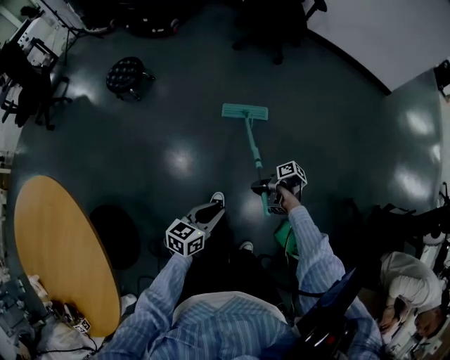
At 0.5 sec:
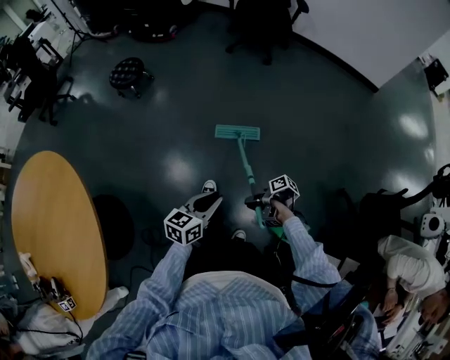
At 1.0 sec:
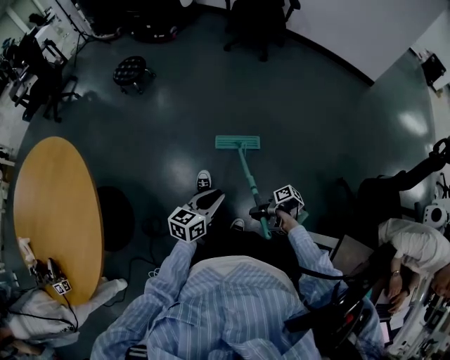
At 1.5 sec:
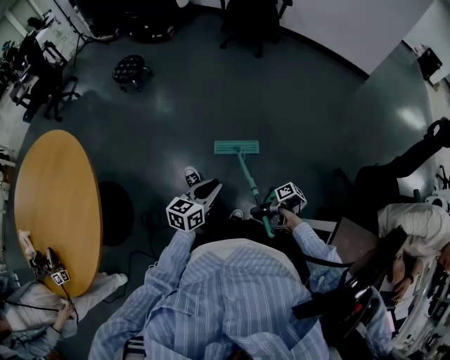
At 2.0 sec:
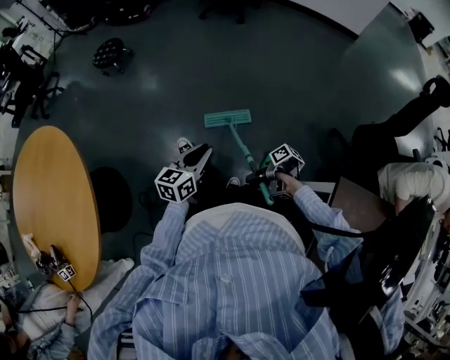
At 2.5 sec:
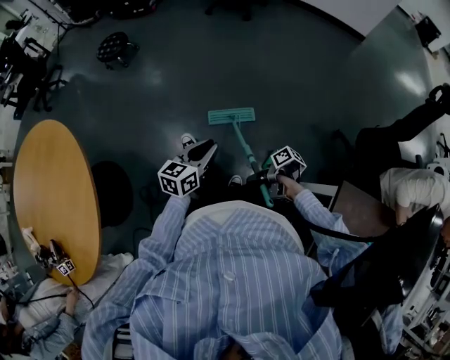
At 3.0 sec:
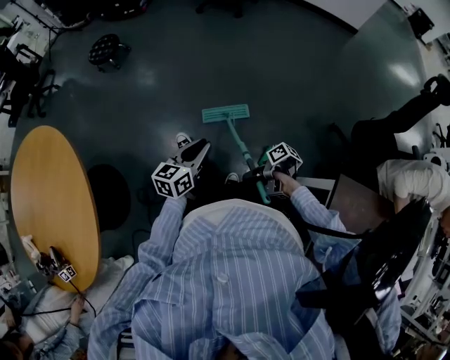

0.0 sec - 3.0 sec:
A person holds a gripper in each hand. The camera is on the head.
0.0 sec - 1.5 sec: The left gripper changes place by roughly 25 cm.

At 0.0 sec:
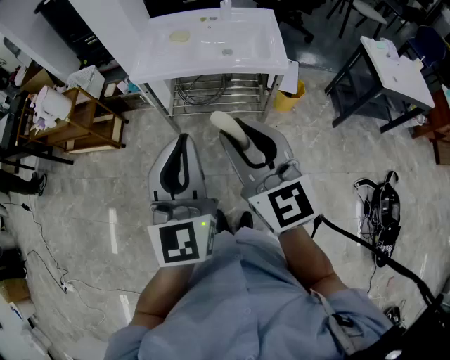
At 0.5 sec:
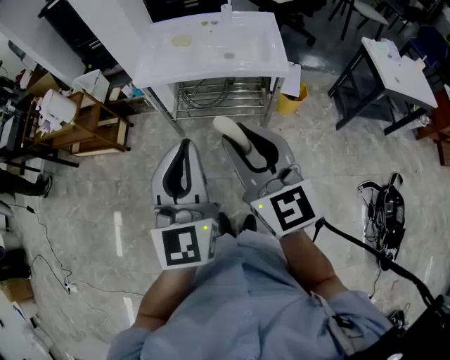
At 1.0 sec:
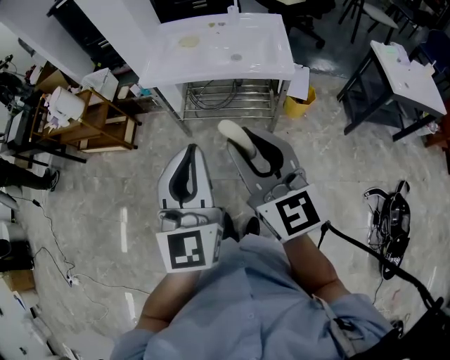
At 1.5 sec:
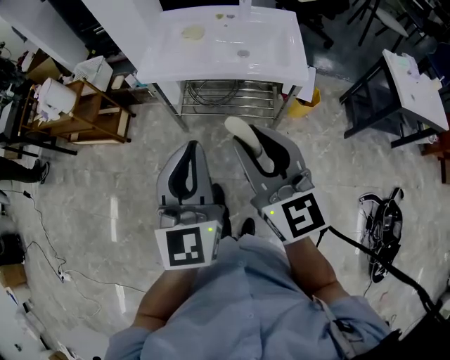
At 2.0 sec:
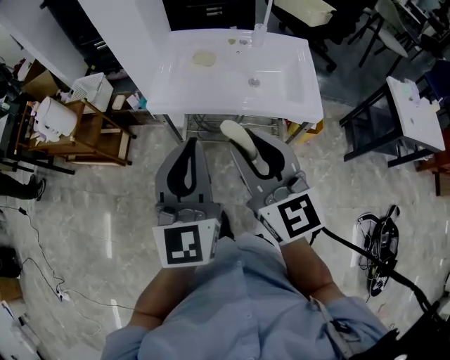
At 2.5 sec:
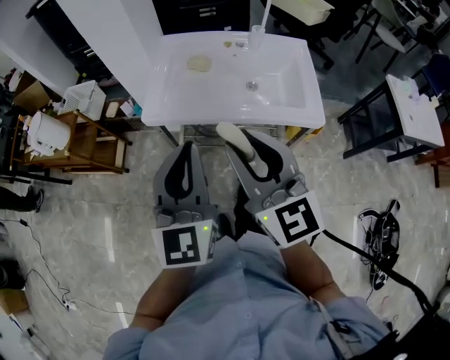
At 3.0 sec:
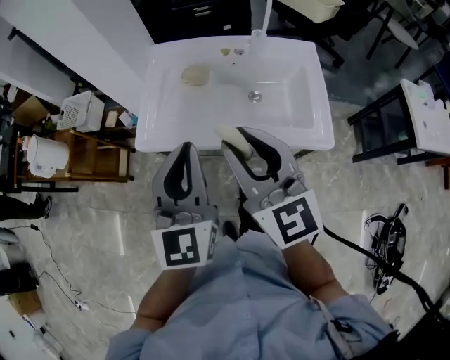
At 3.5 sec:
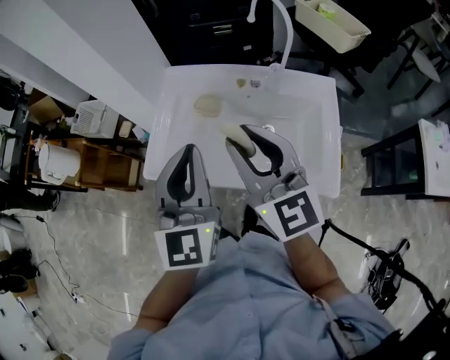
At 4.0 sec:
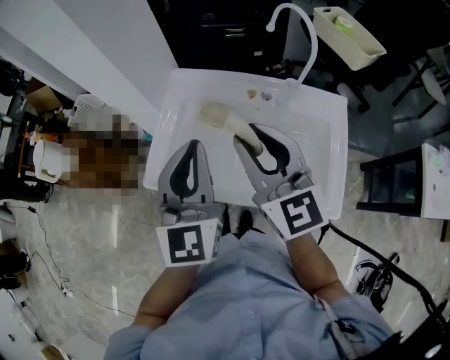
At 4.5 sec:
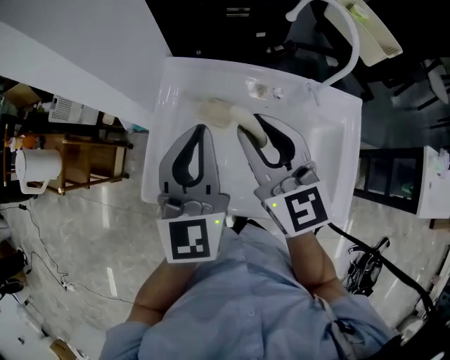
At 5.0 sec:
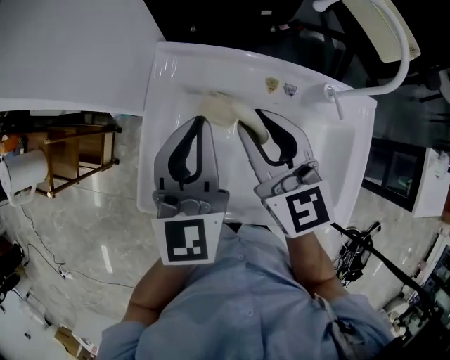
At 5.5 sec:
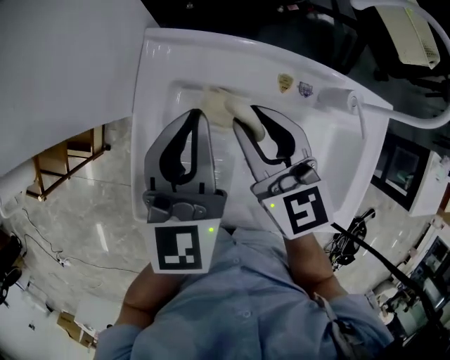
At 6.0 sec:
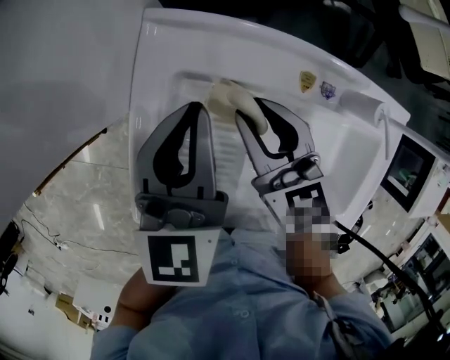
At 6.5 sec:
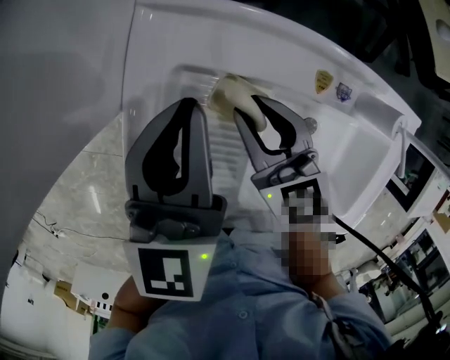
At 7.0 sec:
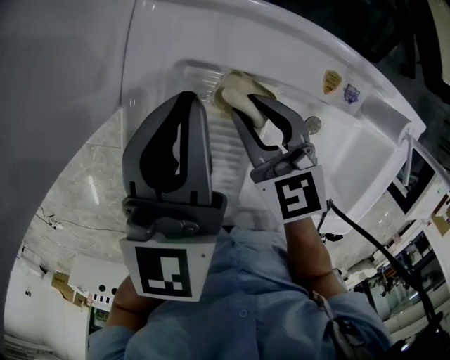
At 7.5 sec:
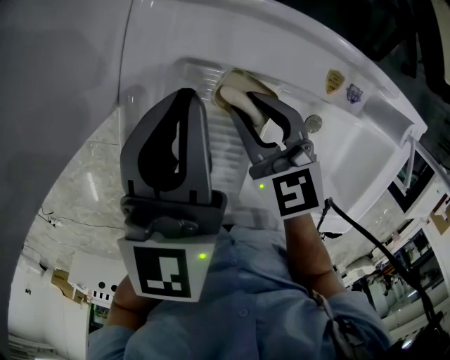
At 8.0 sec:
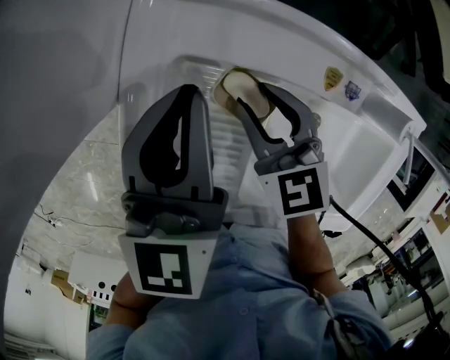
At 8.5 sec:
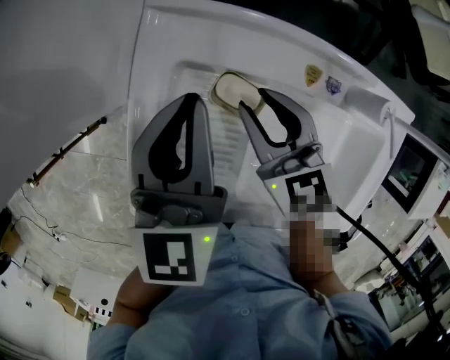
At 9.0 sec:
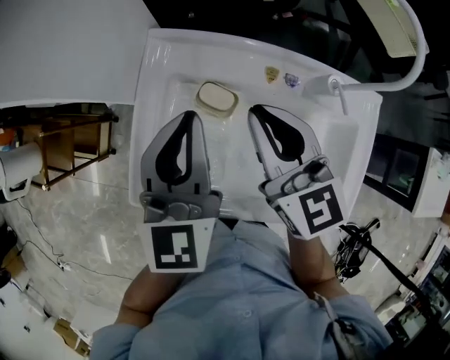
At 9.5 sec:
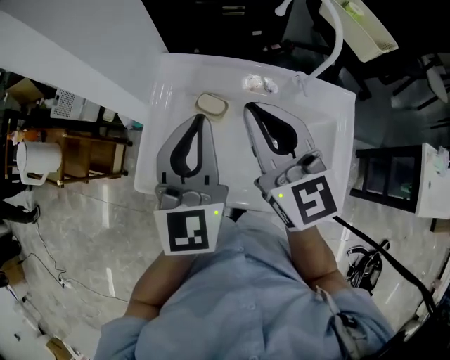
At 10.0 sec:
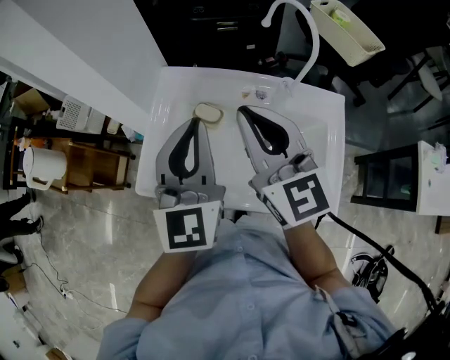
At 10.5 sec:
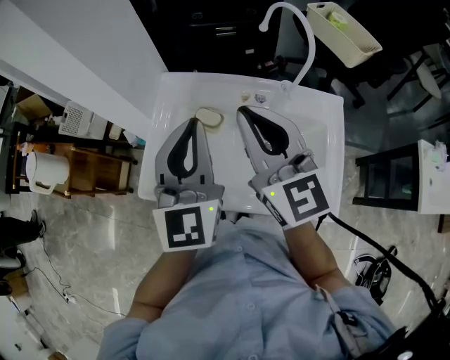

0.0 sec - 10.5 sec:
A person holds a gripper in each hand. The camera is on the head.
0.0 sec - 2.0 sec: Both grippers travel together forward, some 20 cm.
2.0 sec - 4.0 sec: The grippers both shift forward by approximately 35 cm.
4.0 sec - 6.5 sec: The left gripper goes roughly 30 cm forward and downward, and turns by approximately 30 degrees, while the right gripper is displaced downward and forward by some 35 cm, and swivels roughly 30 degrees.
6.5 sec - 8.5 sec: The grippers stay close to where they were, moving slightly.
8.5 sec - 10.5 sec: The left gripper shifts roughly 25 cm backward and upward, and swivels about 30 degrees. Meanwhile the right gripper is displaced upward and backward by roughly 30 cm, tips its fingers upward by some 30 degrees, and closes its fingers.

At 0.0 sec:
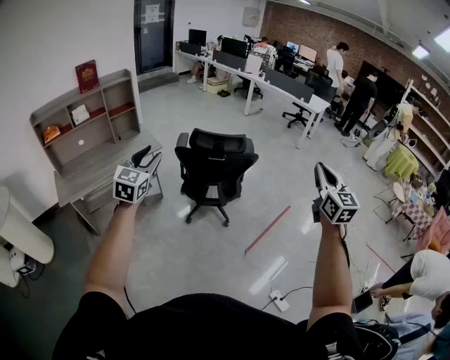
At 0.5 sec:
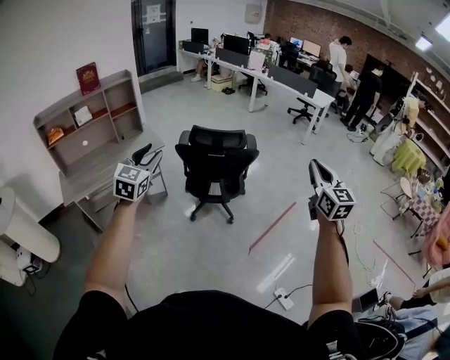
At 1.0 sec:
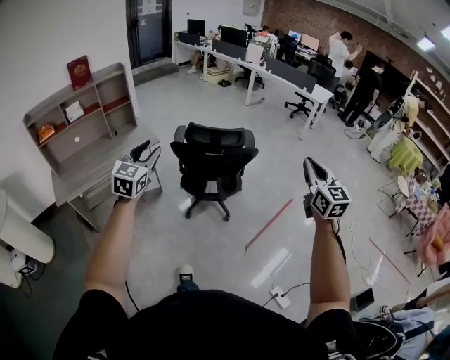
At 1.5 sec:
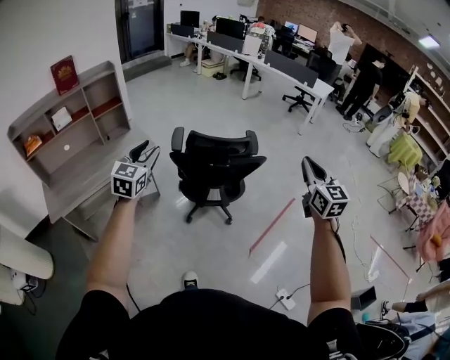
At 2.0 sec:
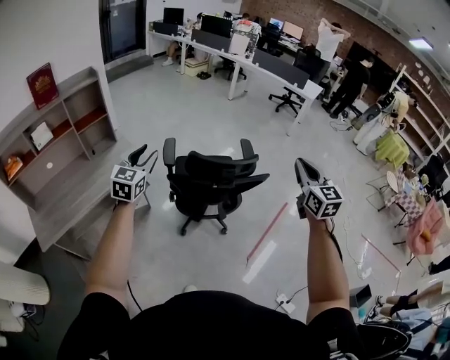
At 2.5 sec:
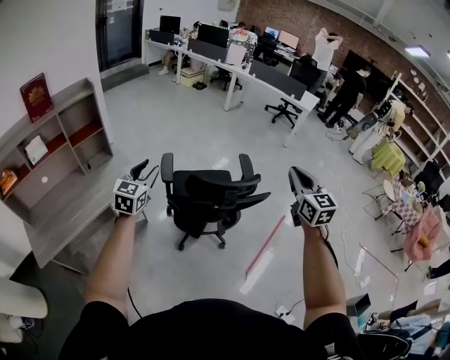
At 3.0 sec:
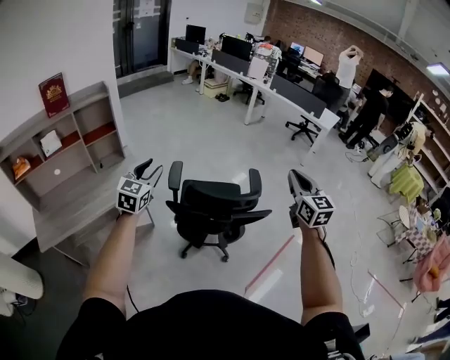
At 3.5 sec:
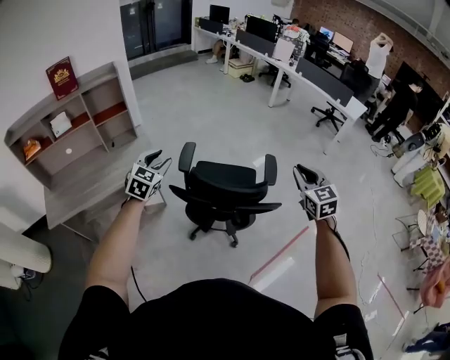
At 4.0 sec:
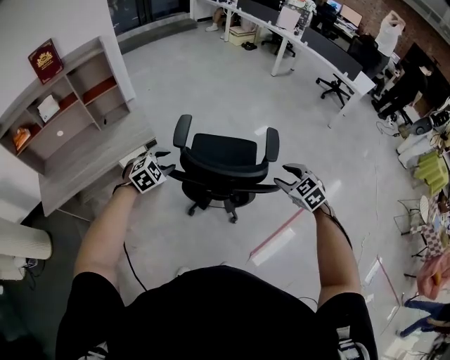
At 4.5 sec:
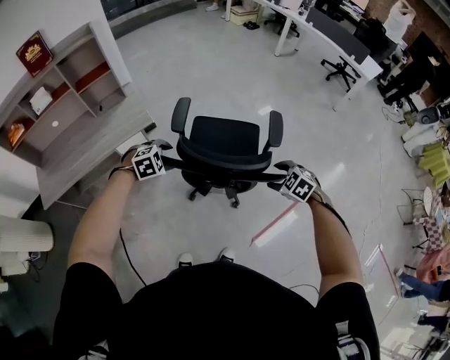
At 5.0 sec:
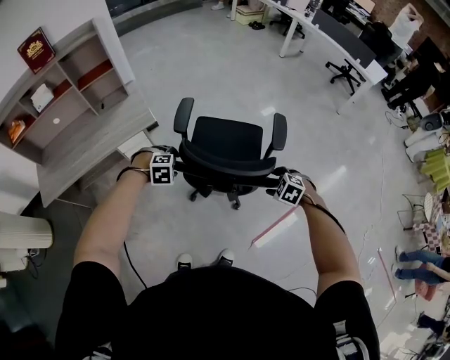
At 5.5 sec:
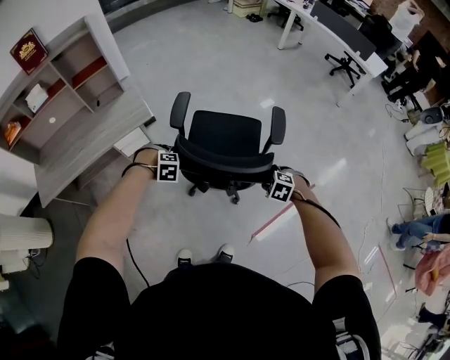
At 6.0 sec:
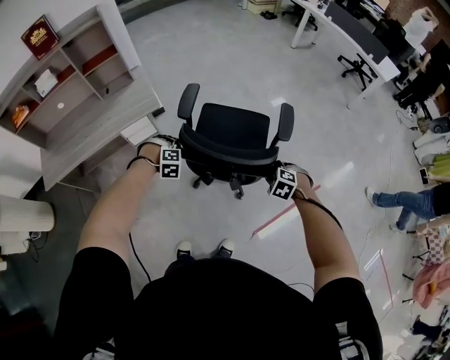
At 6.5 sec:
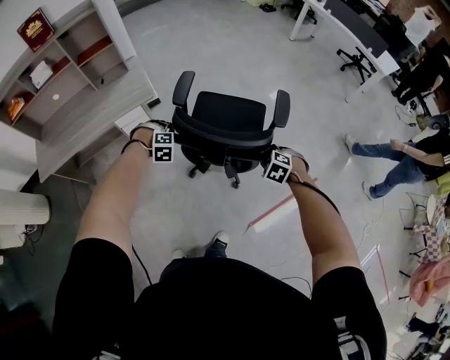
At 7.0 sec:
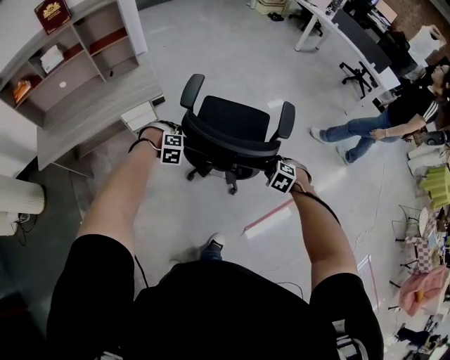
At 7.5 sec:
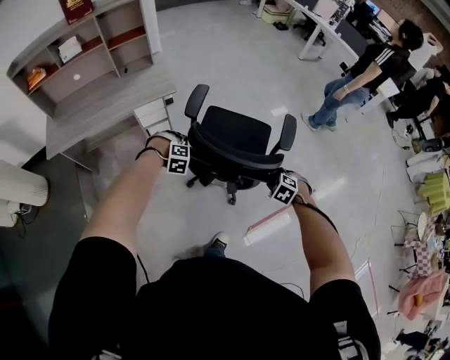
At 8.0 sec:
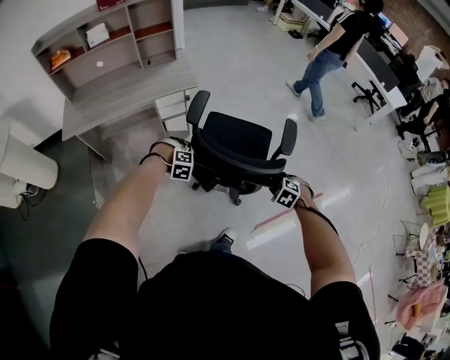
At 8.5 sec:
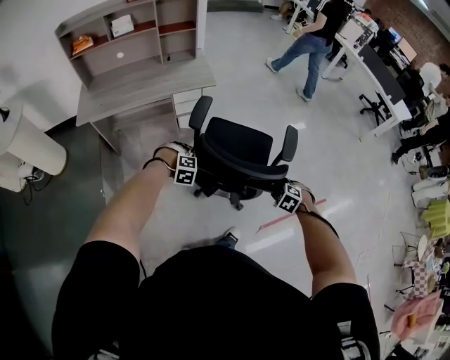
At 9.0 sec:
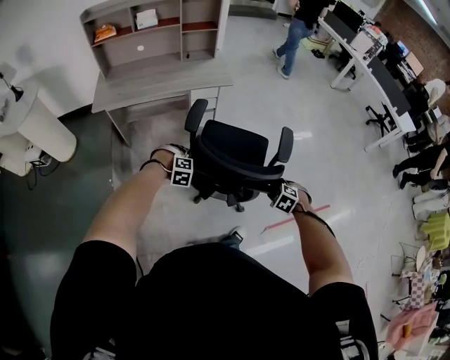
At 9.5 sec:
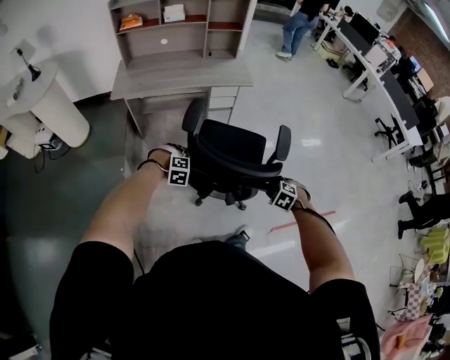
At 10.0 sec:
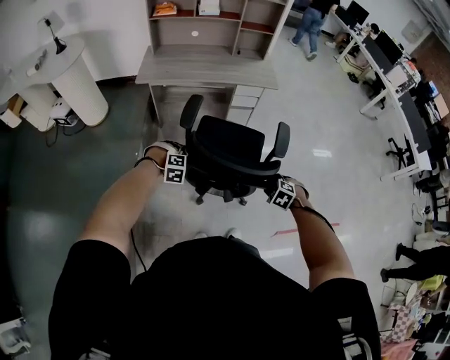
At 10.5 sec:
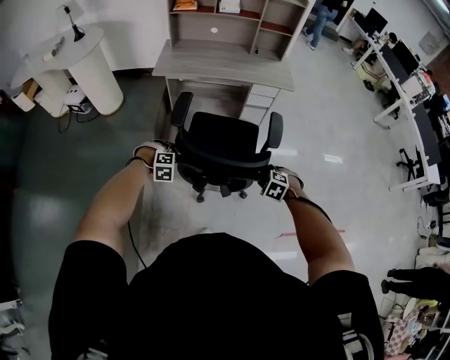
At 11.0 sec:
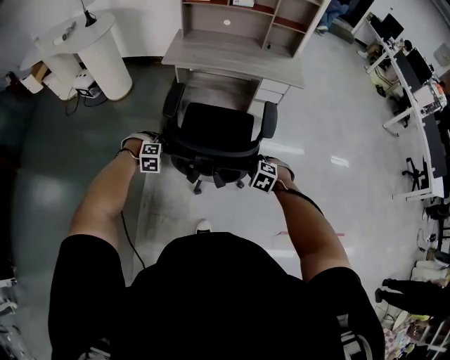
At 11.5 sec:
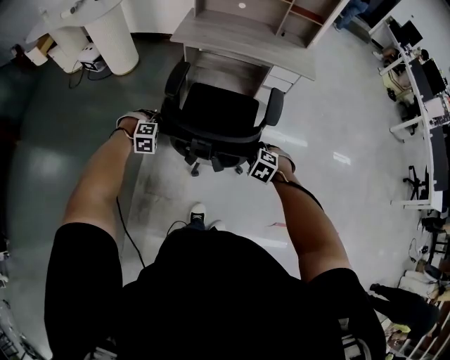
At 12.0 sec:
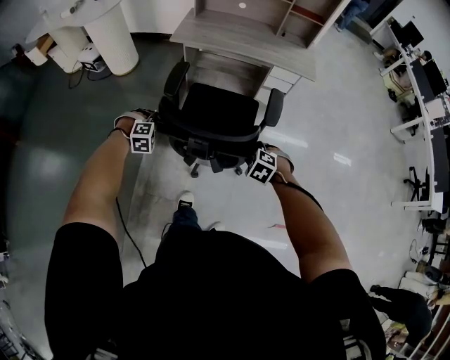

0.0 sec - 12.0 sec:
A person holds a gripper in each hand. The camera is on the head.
0.0 sec - 2.0 sec: The left gripper moves forward, approximately 35 cm; the right gripper moves forward and to the left, approximately 35 cm.
2.0 sec - 4.0 sec: The left gripper is displaced downward, to the right and forward by approximately 25 cm, and points its fingers roughly 40 degrees further downward. Meanwhile the right gripper heads downward and forward, covering approximately 30 cm, tips its fingers downward by some 40 degrees, and opens up.
4.0 sec - 6.0 sec: The two grippers go about 20 cm downward. The right gripper turns by some 40 degrees; the left gripper changes its angle by about 40 degrees, and closes.
6.0 sec - 8.0 sec: Both grippers travel together backward and to the left, approximately 20 cm.
8.0 sec - 10.0 sec: The left gripper is displaced to the left and backward by roughly 40 cm, and turns by about 20 degrees. The right gripper heads to the left, covering roughly 35 cm, and swivels approximately 20 degrees.
10.0 sec - 12.0 sec: The right gripper shifts roughly 15 cm to the left and forward. Meanwhile the left gripper moves to the left, roughly 15 cm.

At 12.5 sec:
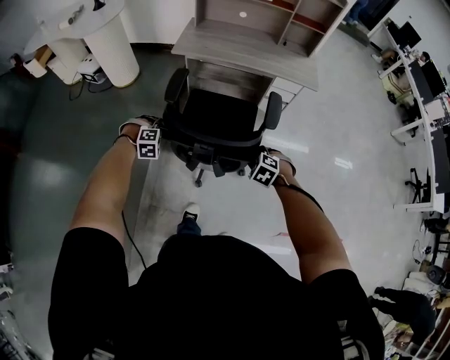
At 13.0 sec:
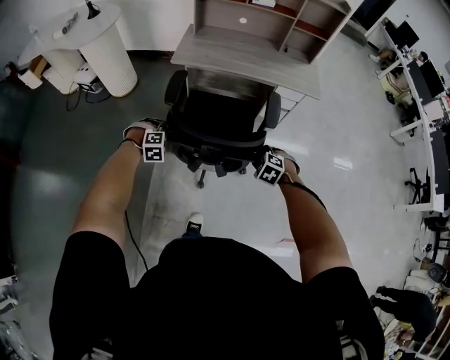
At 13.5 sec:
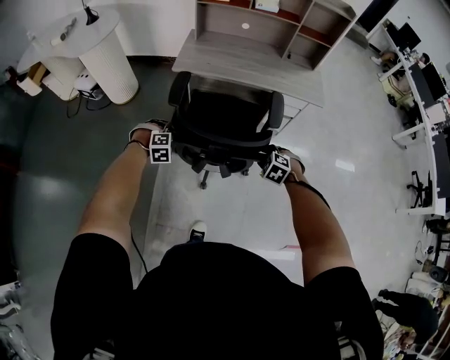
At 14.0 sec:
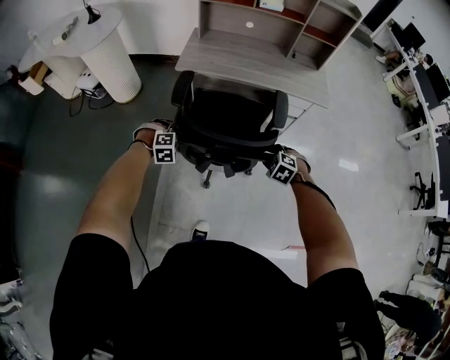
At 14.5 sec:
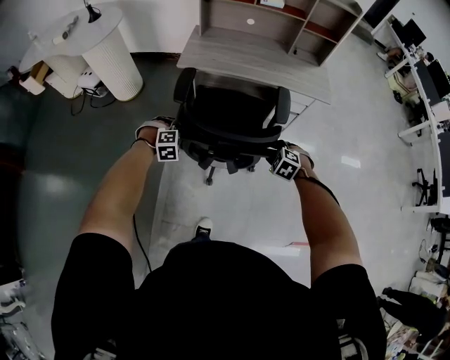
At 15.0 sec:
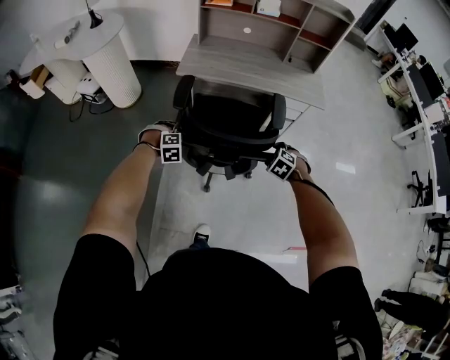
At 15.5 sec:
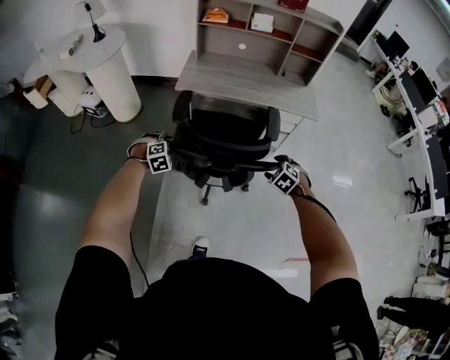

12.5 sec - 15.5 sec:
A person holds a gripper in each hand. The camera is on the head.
12.5 sec - 14.0 sec: The grippers both shift forward by some 15 cm.
14.0 sec - 15.5 sec: The right gripper ends up approximately 5 cm from where it was, and opens its fingers. The left gripper ends up approximately 5 cm from where it was.
